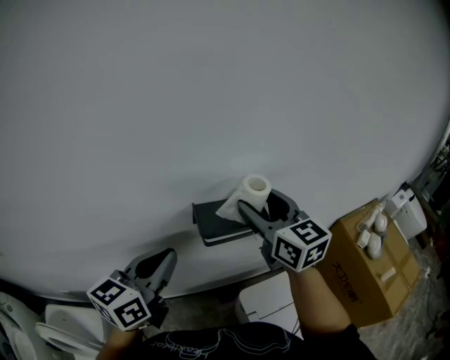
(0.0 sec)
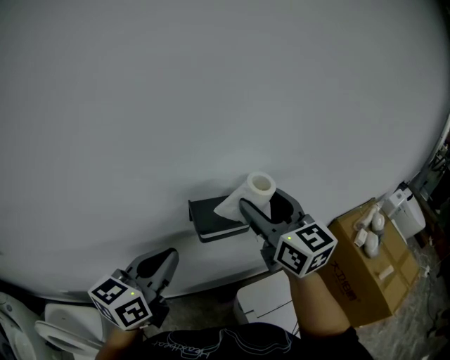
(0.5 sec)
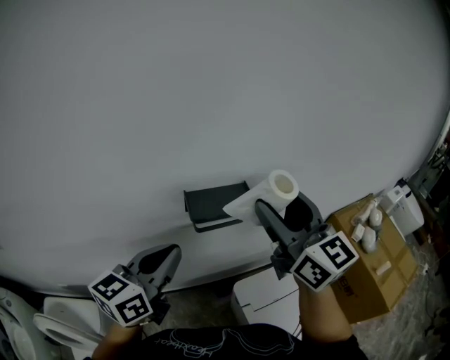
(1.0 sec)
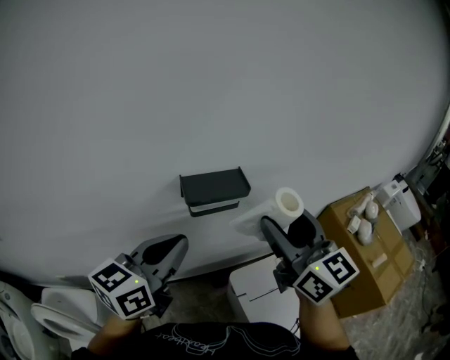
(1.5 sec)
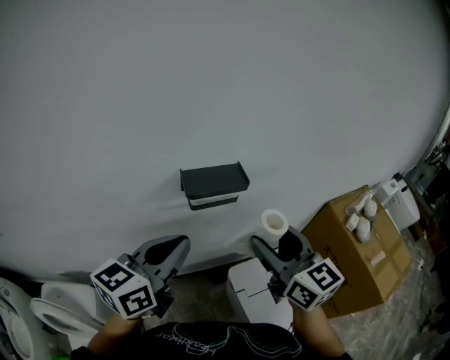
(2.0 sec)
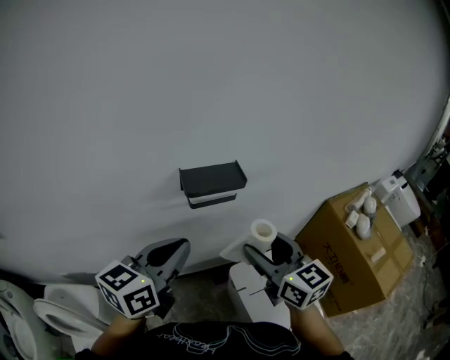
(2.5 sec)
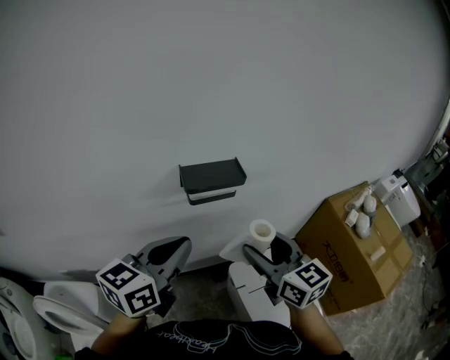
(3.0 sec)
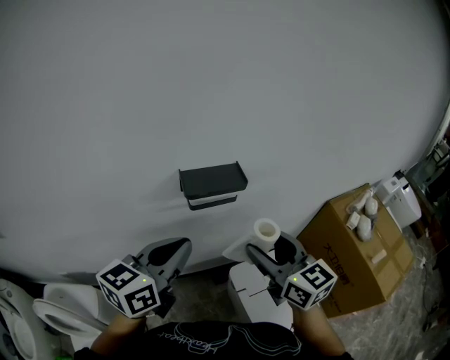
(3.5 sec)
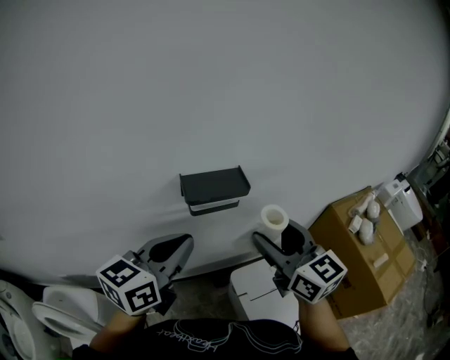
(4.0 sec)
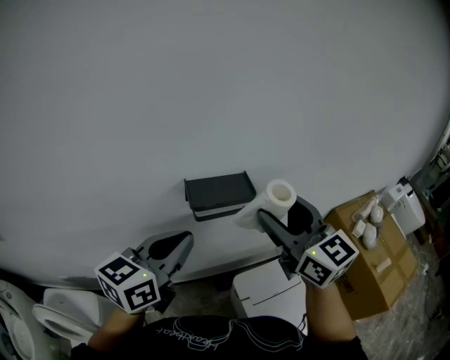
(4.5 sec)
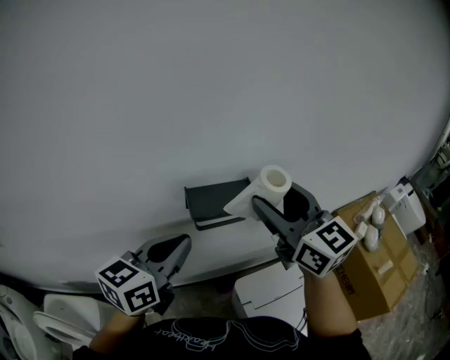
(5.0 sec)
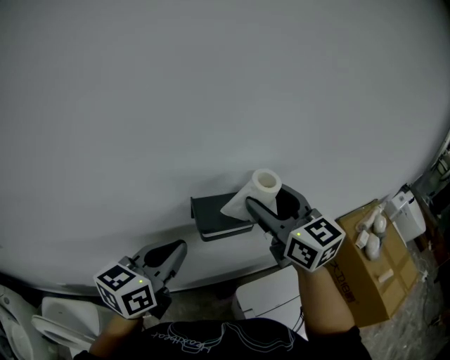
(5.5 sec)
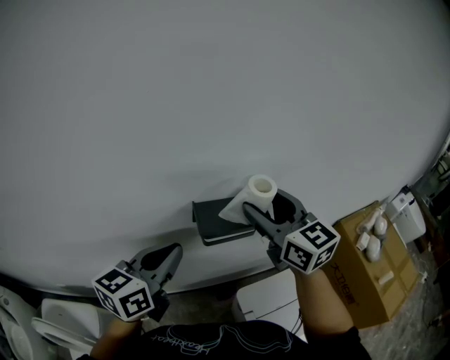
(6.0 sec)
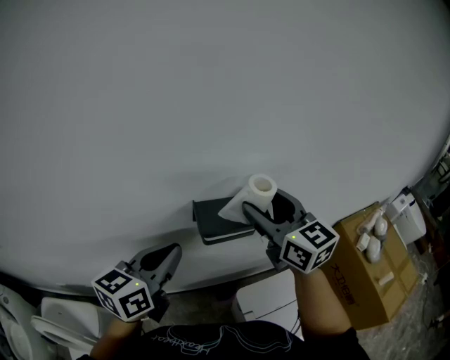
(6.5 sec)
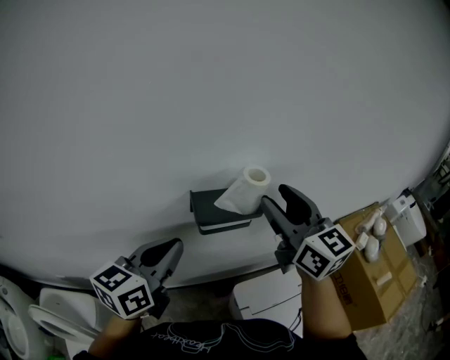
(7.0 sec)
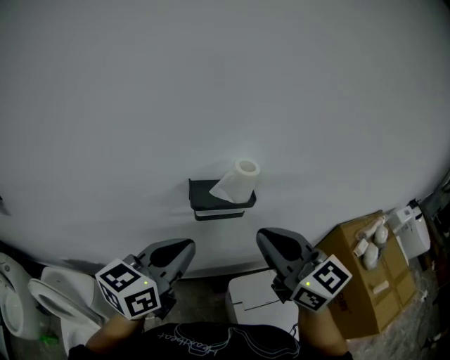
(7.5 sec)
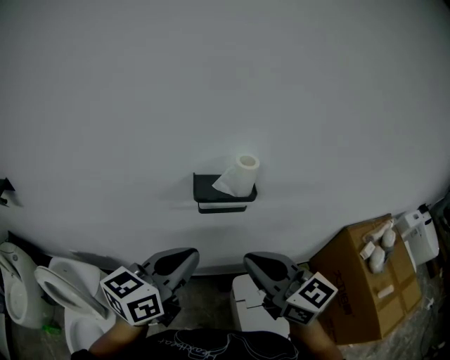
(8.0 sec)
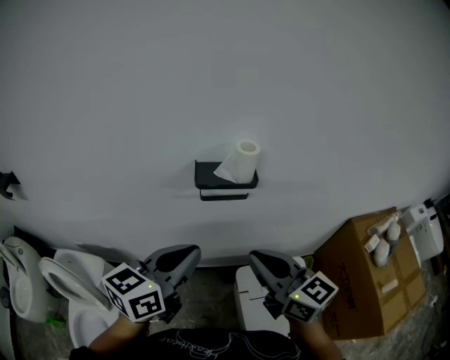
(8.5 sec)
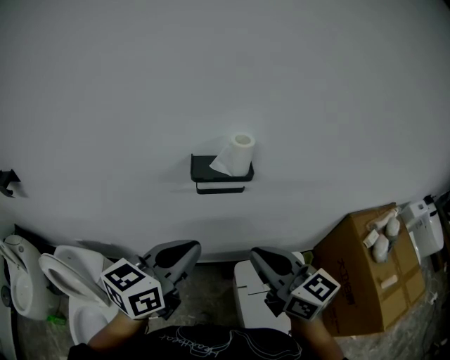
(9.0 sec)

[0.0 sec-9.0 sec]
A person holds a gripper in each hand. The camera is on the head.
0.0 sec to 2.0 sec: The left gripper is displaced backward and to the right by about 10 cm, while the right gripper goes about 20 cm backward and to the right.
2.0 sec to 4.5 sec: The right gripper goes approximately 10 cm forward and upward.
4.5 sec to 7.0 sec: The right gripper shifts approximately 5 cm forward.
7.0 sec to 9.0 sec: The left gripper travels backward and to the right by about 15 cm. The right gripper goes some 20 cm backward and downward, turns by some 20 degrees, and closes its fingers.

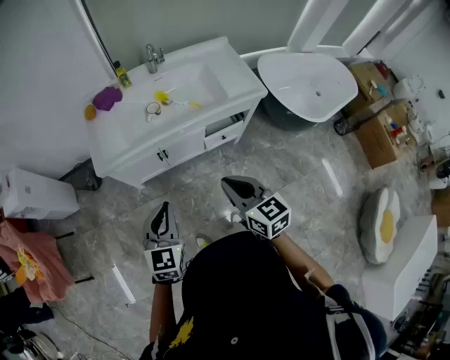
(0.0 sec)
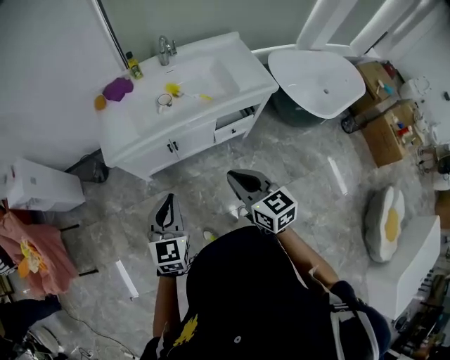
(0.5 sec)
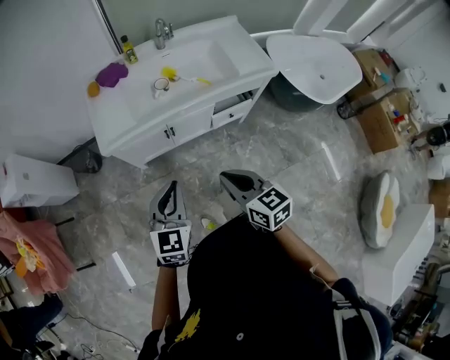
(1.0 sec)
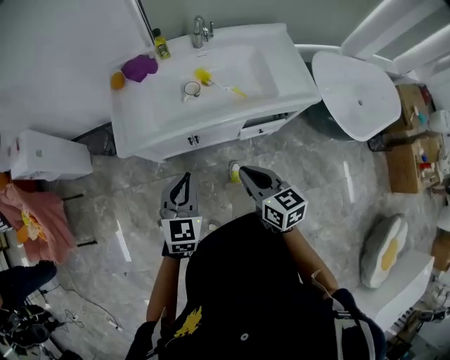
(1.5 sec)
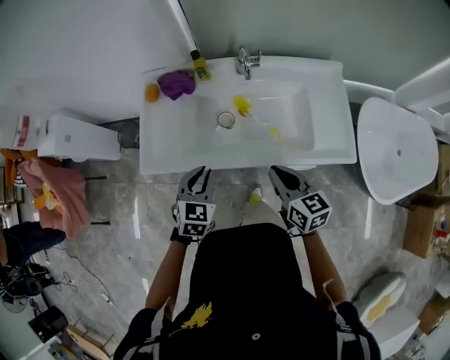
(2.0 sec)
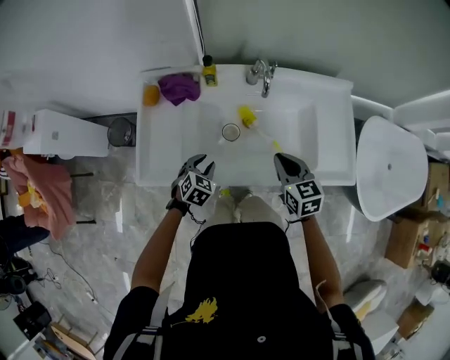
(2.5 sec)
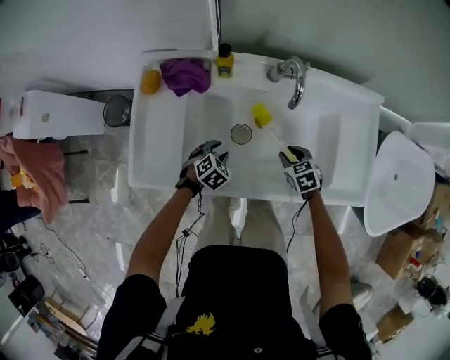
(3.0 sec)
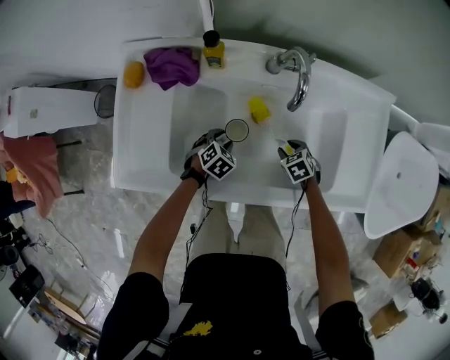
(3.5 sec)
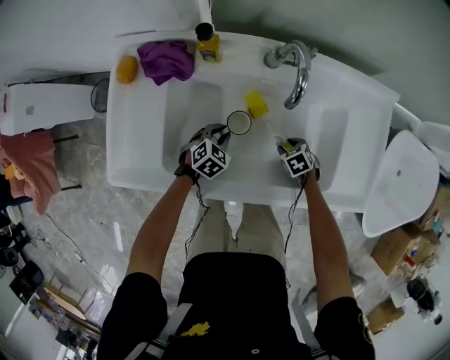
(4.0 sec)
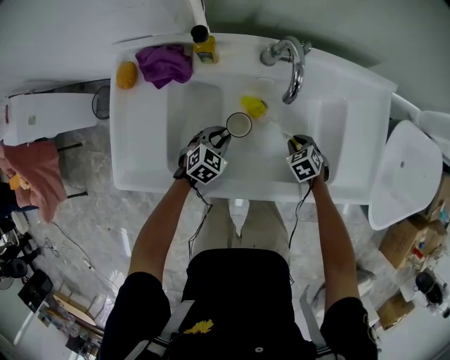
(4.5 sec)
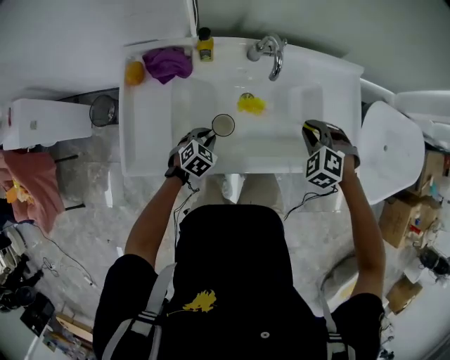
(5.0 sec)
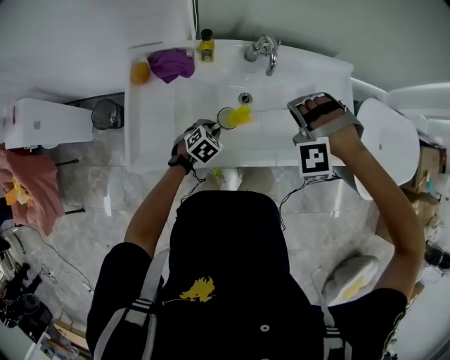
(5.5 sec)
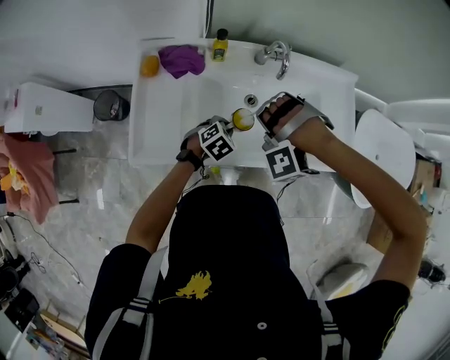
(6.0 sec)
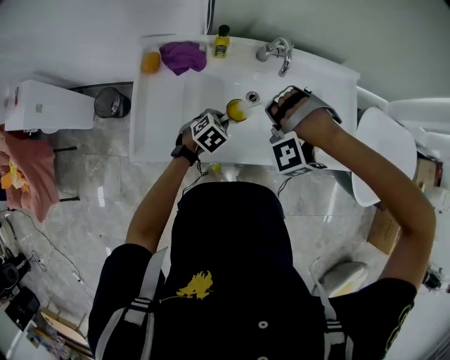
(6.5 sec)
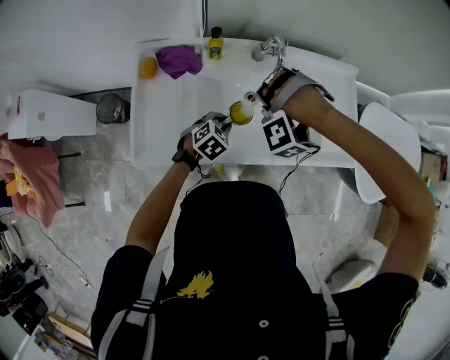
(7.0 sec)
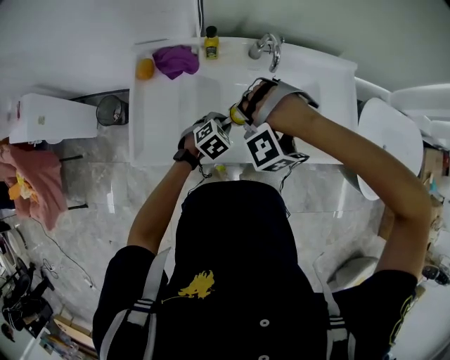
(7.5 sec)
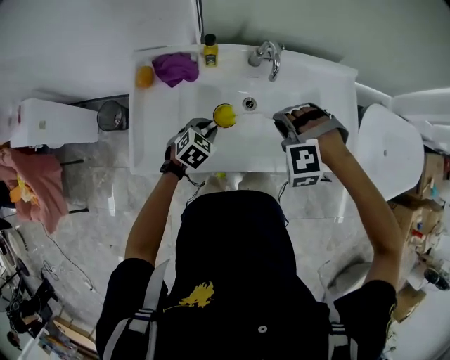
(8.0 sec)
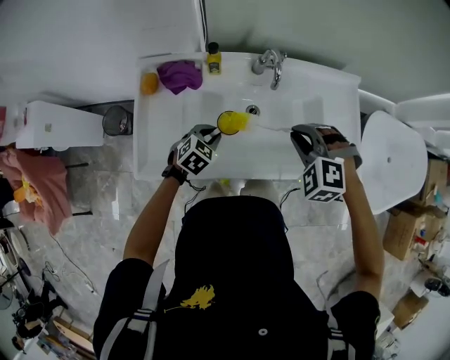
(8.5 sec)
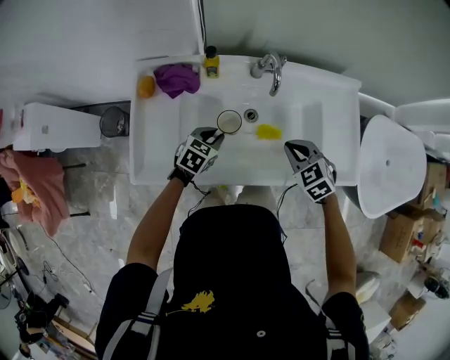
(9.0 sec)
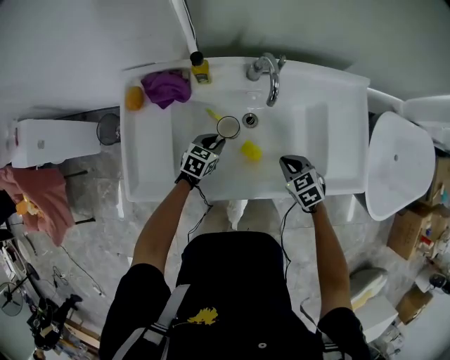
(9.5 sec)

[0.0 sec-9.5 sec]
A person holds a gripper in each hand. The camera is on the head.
0.0 sec to 2.0 sec: The grippers both shift forward by about 35 cm. The left gripper swivels about 20 degrees.
2.0 sec to 4.0 sec: Both grippers travel together downward, approximately 35 cm. The left gripper rotates some 30 degrees, and opens and closes again; the right gripper points its fingers some 50 degrees further downward, and opens.
4.0 sec to 5.5 sec: The right gripper moves upward, roughly 40 cm, twists about 80 degrees counterclockwise, seen from behind, and closes up; the left gripper shifts some 15 cm upward.
5.5 sec to 7.5 sec: The right gripper travels to the left and backward by about 10 cm, and changes its angle by roughly 20 degrees.
7.5 sec to 9.5 sec: The right gripper heads downward and to the right, covering roughly 25 cm, and rolls clockwise, seen from behind, by about 110 degrees. The left gripper travels downward and forward by approximately 10 cm, and turns by roughly 30 degrees.

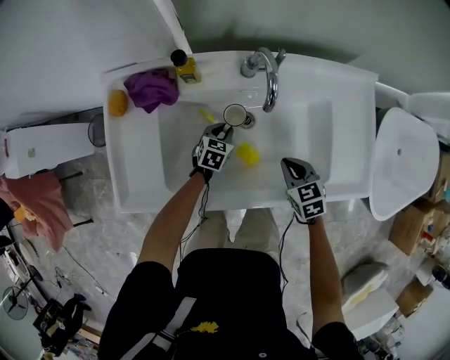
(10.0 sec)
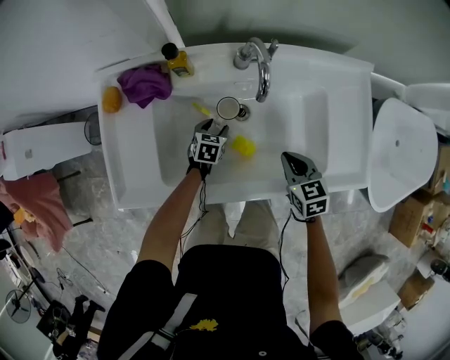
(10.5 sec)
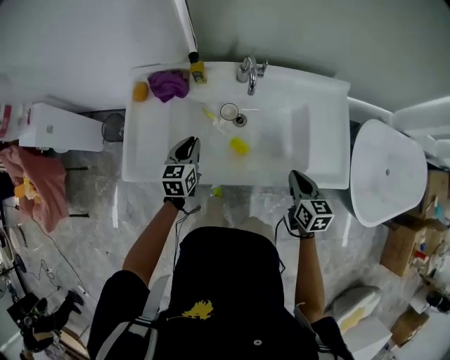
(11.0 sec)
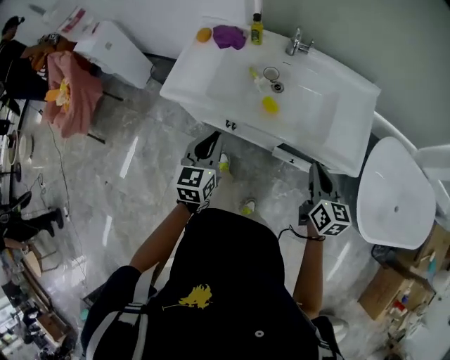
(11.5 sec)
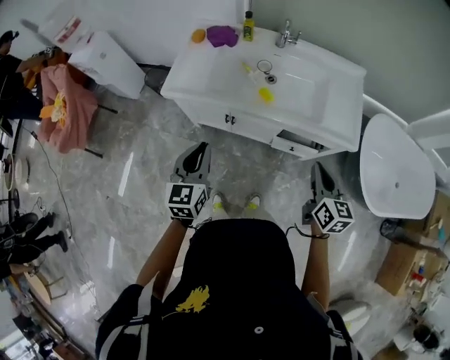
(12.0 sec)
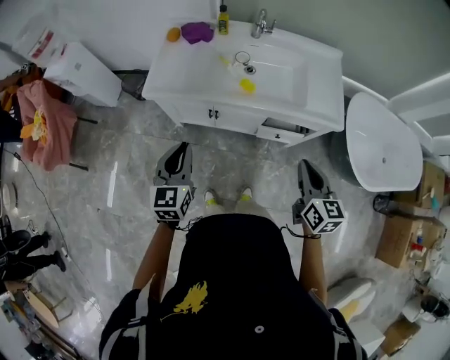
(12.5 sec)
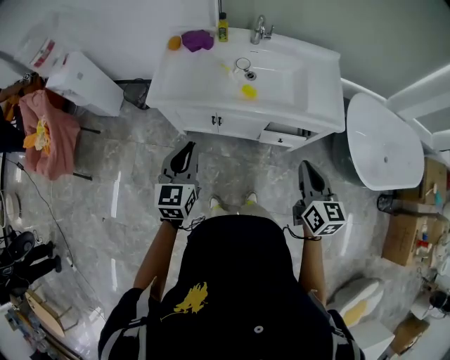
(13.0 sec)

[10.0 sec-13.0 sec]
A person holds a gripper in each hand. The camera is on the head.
10.0 sec to 11.5 sec: The left gripper travels backward and upward by roughly 50 cm, changes its angle by about 50 degrees, and opens, then closes once more; the right gripper goes roughly 35 cm backward, upward and to the right, and points its fingers some 30 degrees further upward.
11.5 sec to 13.0 sec: The grippers both shift backward, to the left and upward by approximately 20 cm.

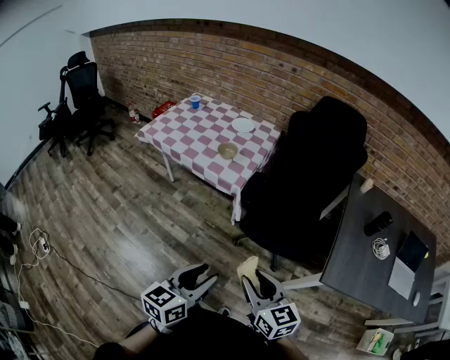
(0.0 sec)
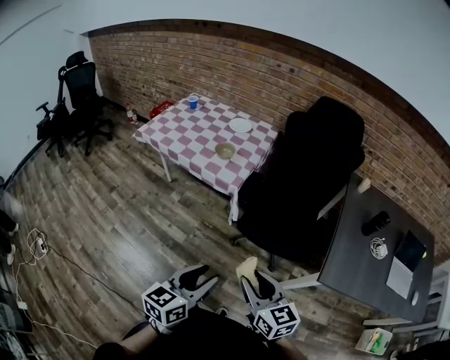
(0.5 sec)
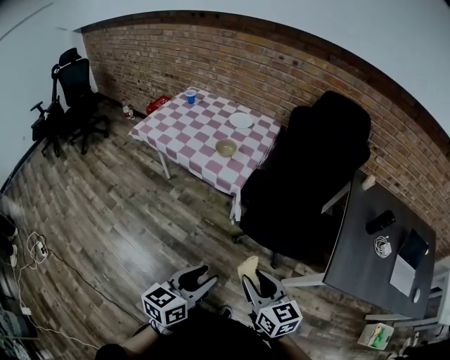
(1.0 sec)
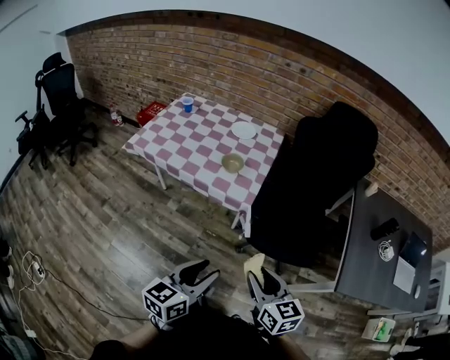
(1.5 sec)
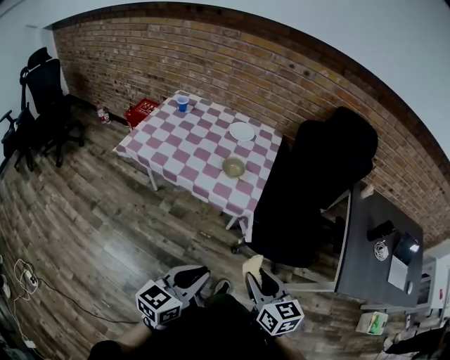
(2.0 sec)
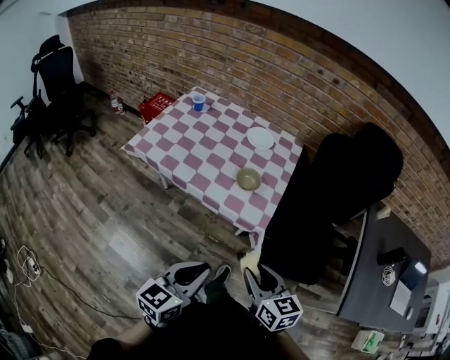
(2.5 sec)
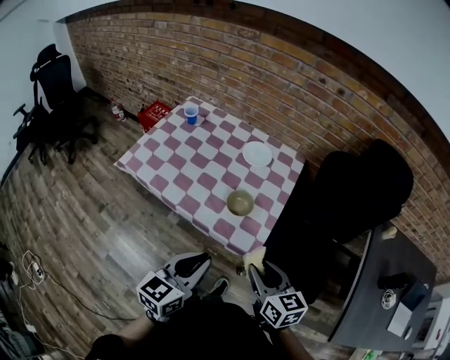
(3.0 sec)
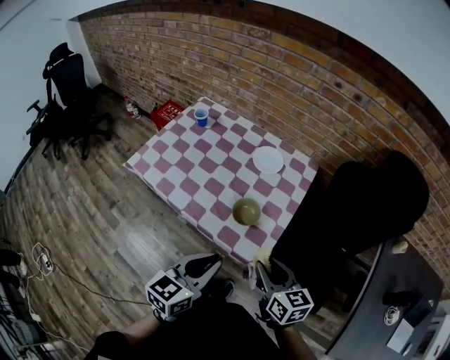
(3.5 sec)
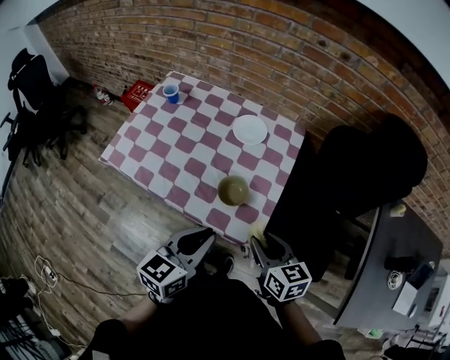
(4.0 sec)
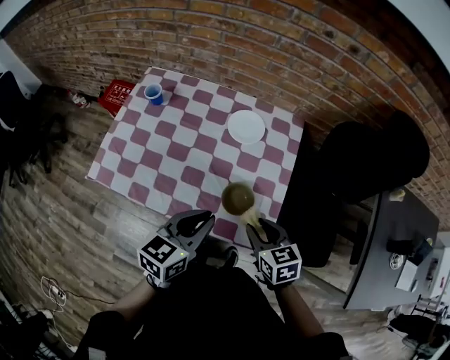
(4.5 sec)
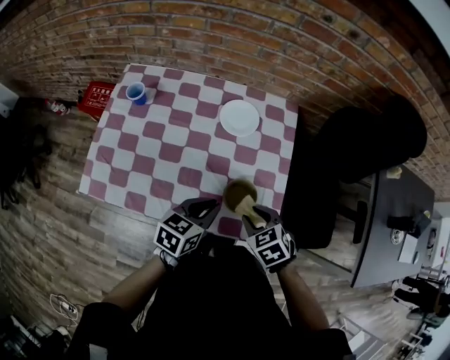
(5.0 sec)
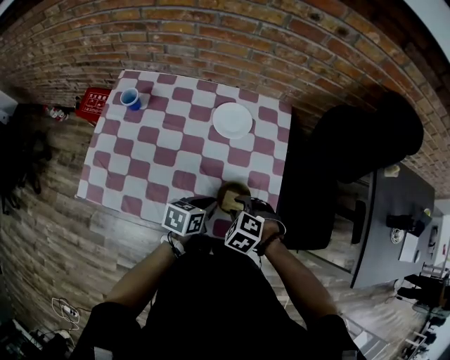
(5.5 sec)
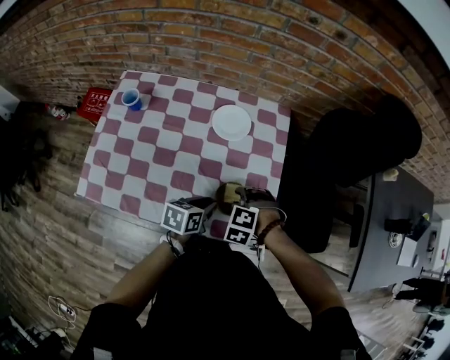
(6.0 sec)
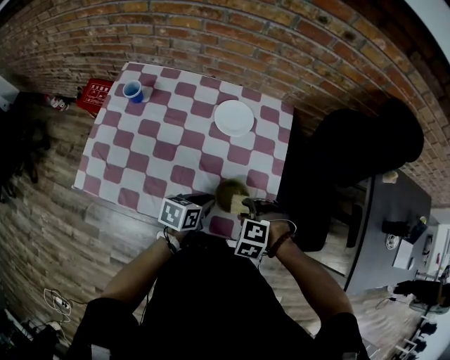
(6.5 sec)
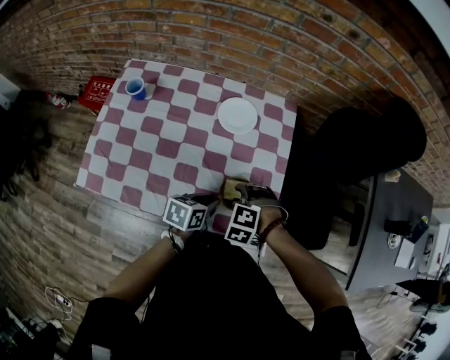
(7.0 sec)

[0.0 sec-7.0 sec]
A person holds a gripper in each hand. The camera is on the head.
0.0 sec to 2.0 sec: Both grippers travel together to the left and forward, about 25 cm. The left gripper closes.
2.0 sec to 3.5 sec: Both grippers move forward, roughly 30 cm.
3.5 sec to 5.0 sec: The left gripper goes roughly 25 cm forward and downward, and swivels some 30 degrees. Meanwhile the right gripper moves forward, downward and to the left, roughly 20 cm, and angles its fingers downward, by about 30 degrees.
5.0 sec to 7.0 sec: The left gripper is displaced downward by roughly 10 cm. The right gripper changes place by about 5 cm, and rolls counterclockwise, seen from behind, by about 50 degrees.
